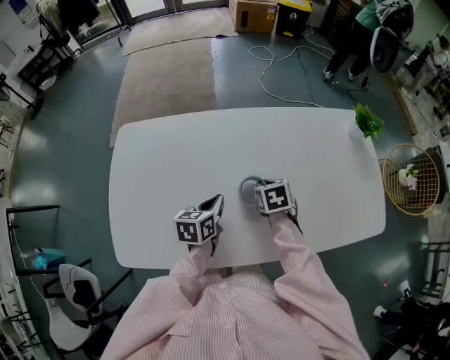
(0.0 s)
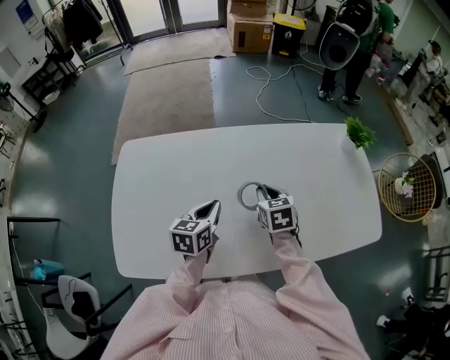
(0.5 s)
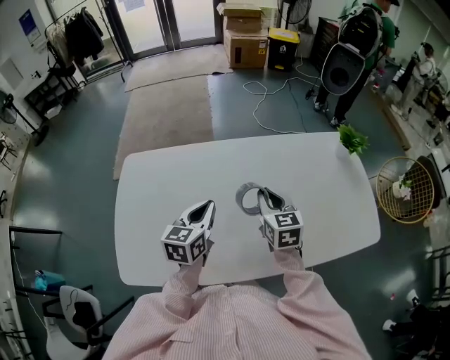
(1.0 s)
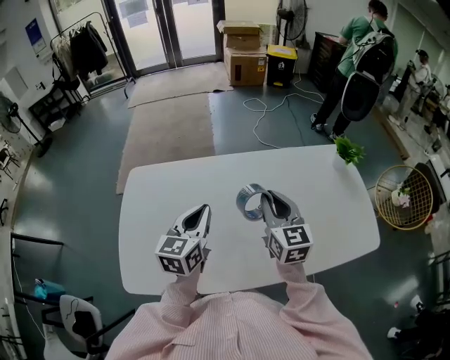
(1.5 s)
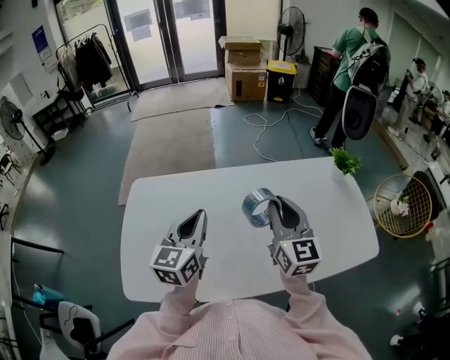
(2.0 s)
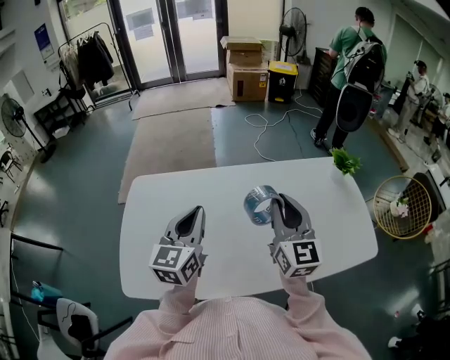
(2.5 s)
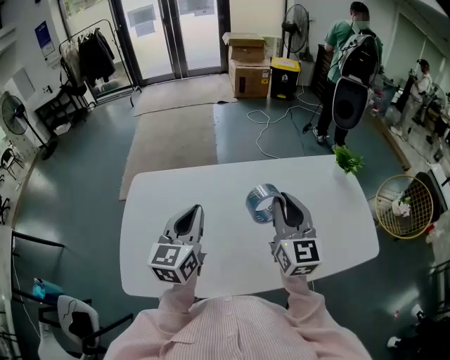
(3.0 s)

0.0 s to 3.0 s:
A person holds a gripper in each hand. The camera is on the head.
0.0 to 1.5 s: Both grippers move upward, some 20 cm. The left gripper turns by about 30 degrees, while the right gripper angles its fingers upward, by roughly 50 degrees.
1.5 to 3.0 s: Both grippers move upward, about 5 cm.

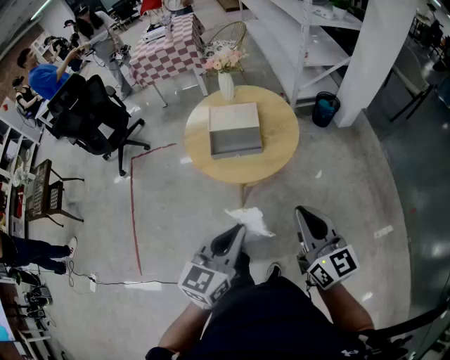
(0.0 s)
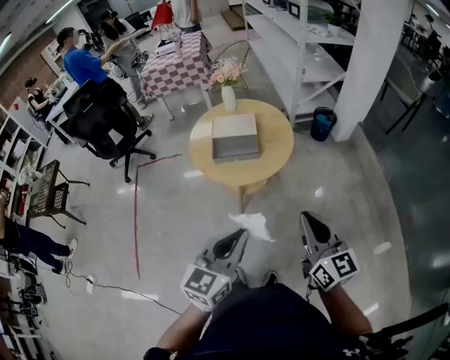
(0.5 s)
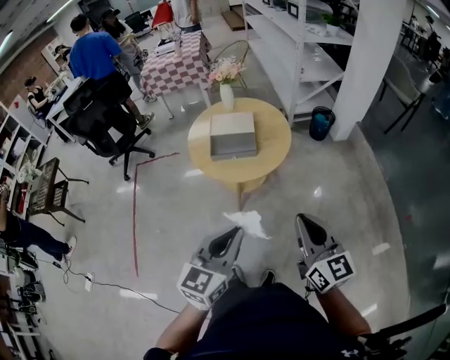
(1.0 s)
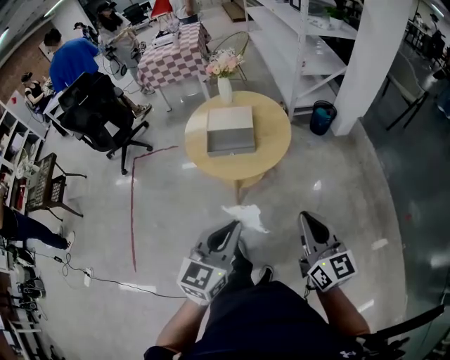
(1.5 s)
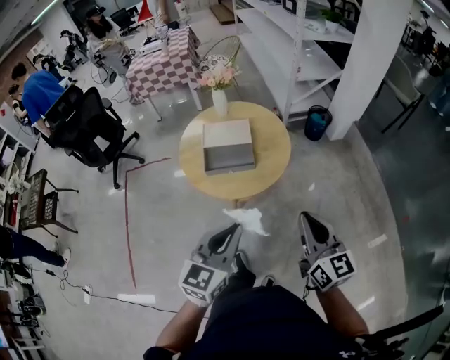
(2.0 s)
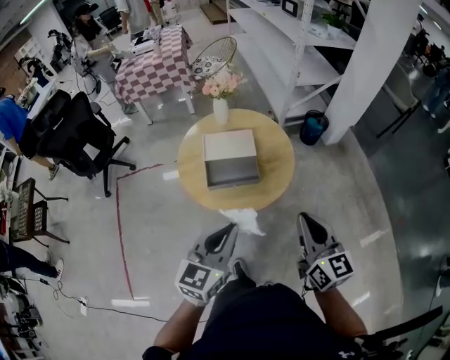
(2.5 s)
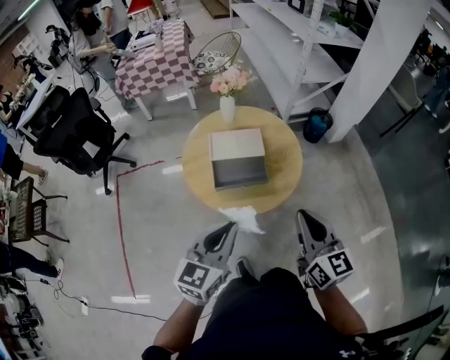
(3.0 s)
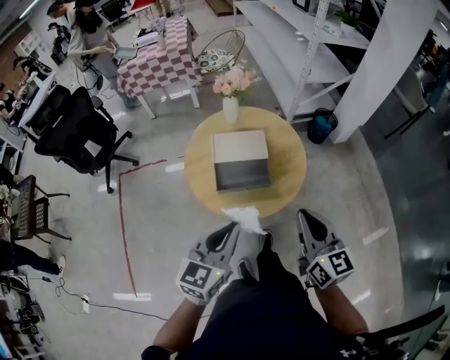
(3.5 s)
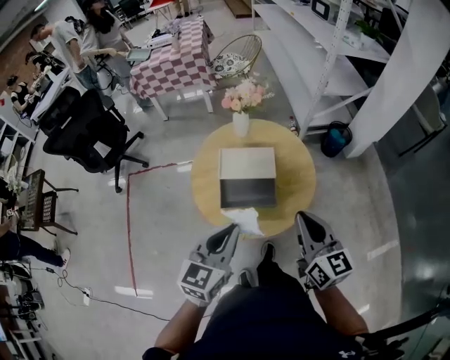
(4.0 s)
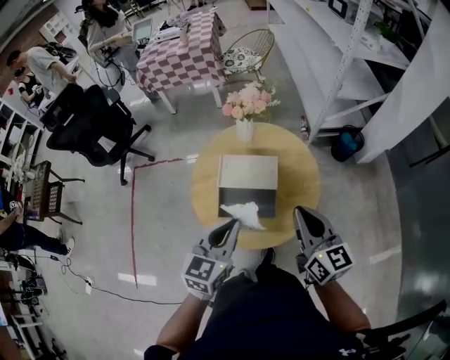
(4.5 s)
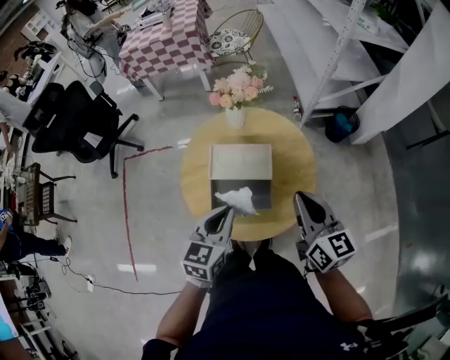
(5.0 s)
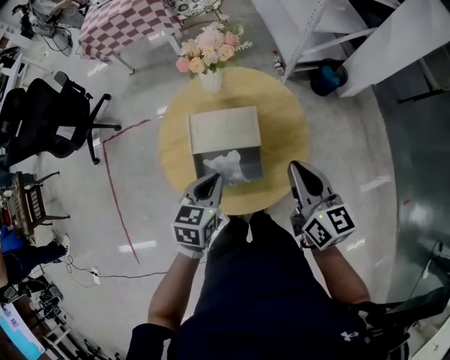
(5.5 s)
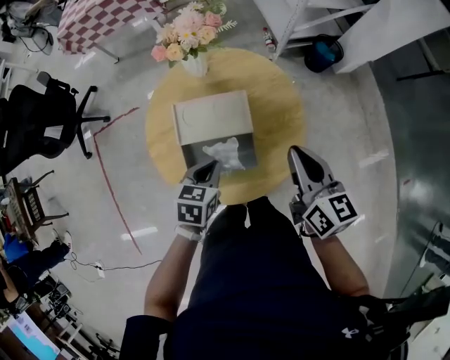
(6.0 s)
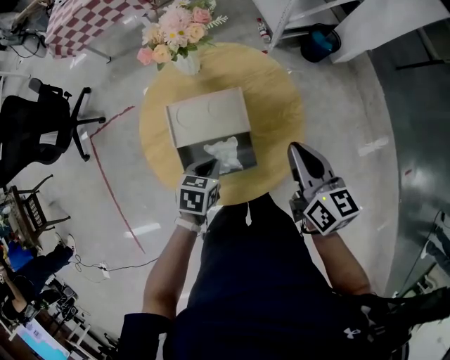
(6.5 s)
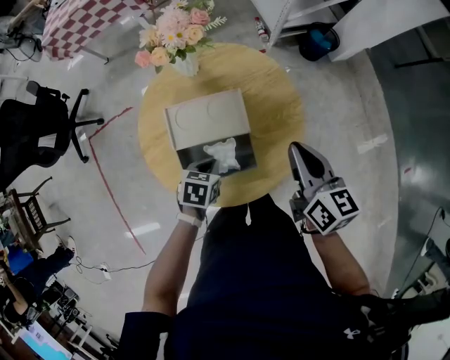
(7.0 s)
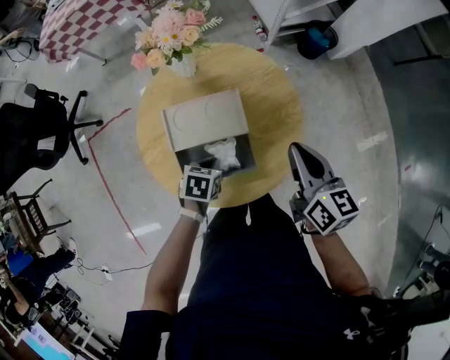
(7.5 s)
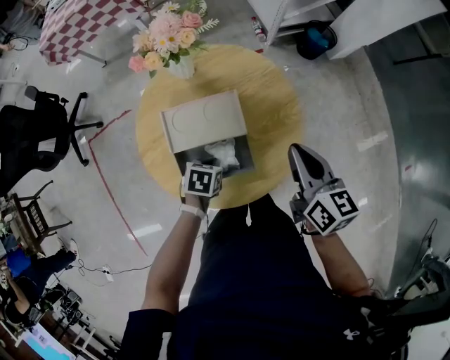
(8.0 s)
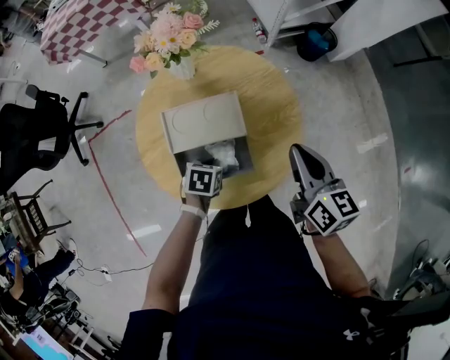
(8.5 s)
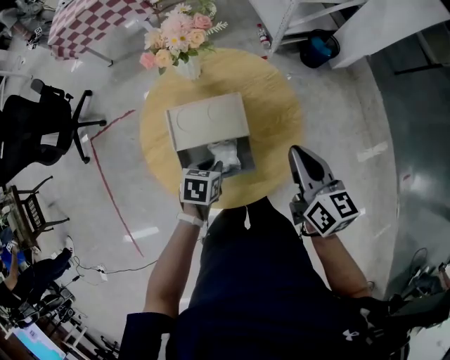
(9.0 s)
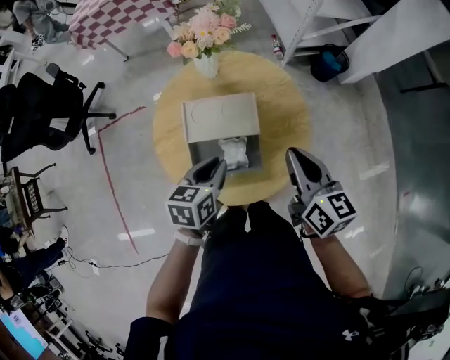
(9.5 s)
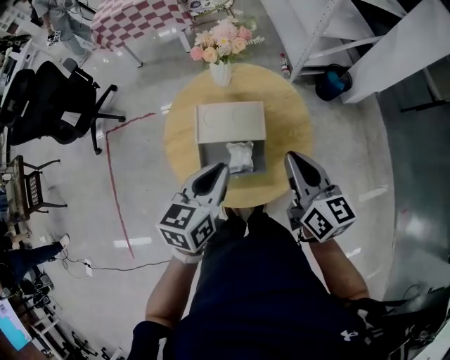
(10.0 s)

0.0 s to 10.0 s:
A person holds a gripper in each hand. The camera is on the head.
0.0 to 2.0 s: The left gripper moves approximately 10 cm backward and comes back; the right gripper goes backward and returns, about 10 cm each way.
2.0 to 4.0 s: The two grippers go some 25 cm forward and to the left.
4.0 to 6.0 s: The left gripper goes some 25 cm downward and forward, and points its fingers roughly 30 degrees further downward. Meanwhile the right gripper goes about 15 cm forward and downward.
6.0 to 8.0 s: The left gripper moves downward, some 10 cm, and swivels about 20 degrees.
8.0 to 10.0 s: The left gripper shifts roughly 25 cm upward, and tips its fingers upward by approximately 40 degrees, while the right gripper goes about 10 cm upward, to the left and backward.

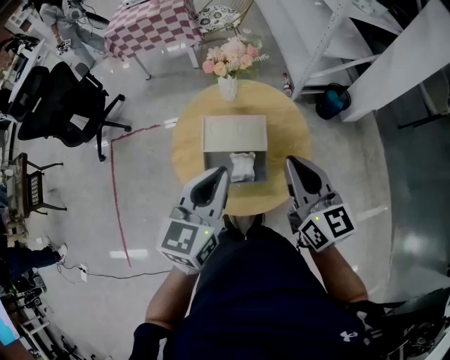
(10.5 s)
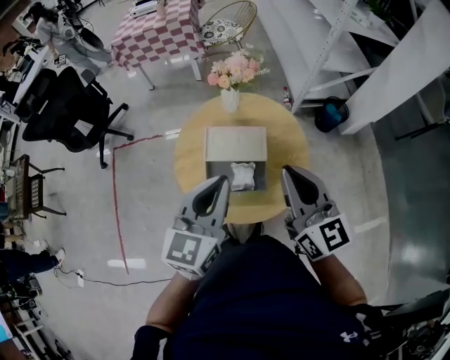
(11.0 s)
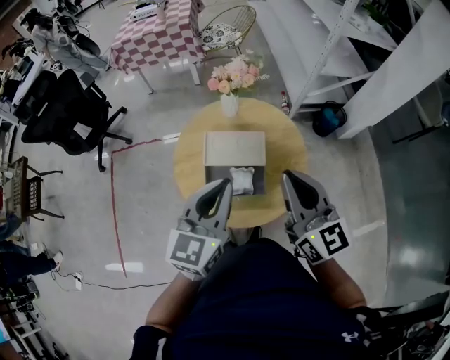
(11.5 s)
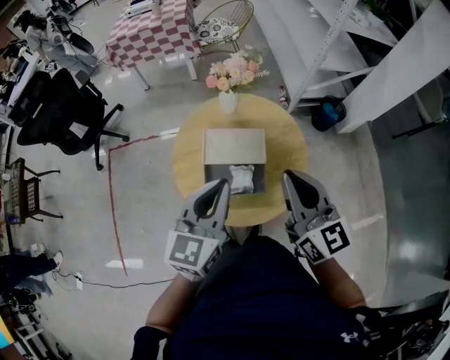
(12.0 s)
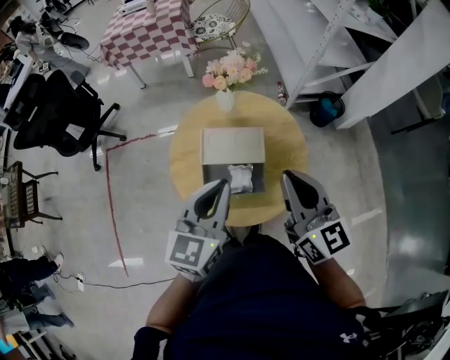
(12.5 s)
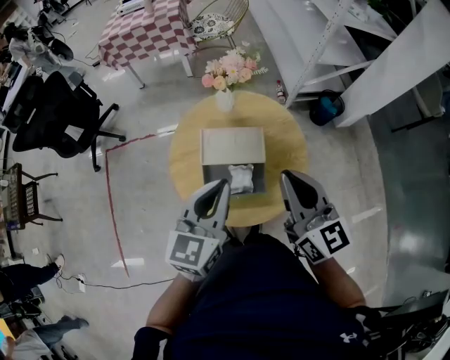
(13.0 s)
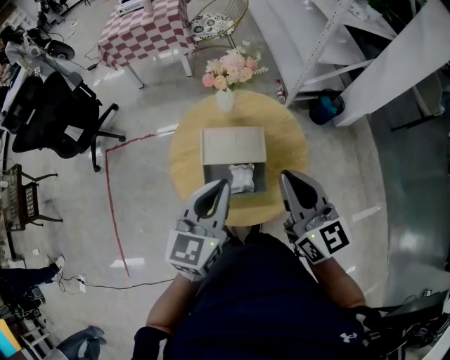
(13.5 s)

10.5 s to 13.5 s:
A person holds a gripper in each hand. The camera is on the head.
10.5 to 13.5 s: The grippers move only a little.

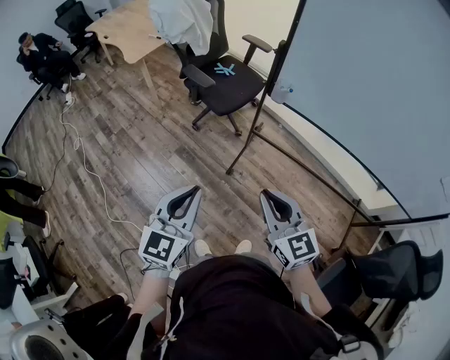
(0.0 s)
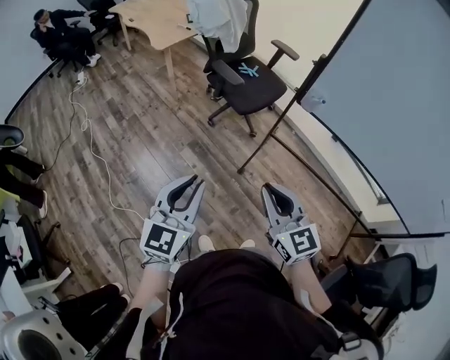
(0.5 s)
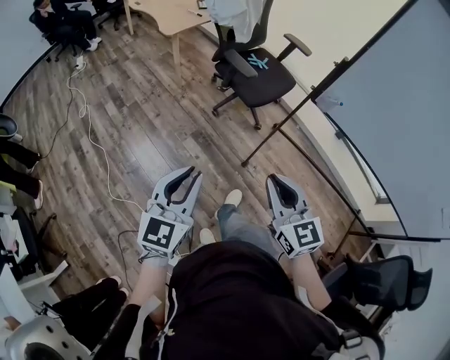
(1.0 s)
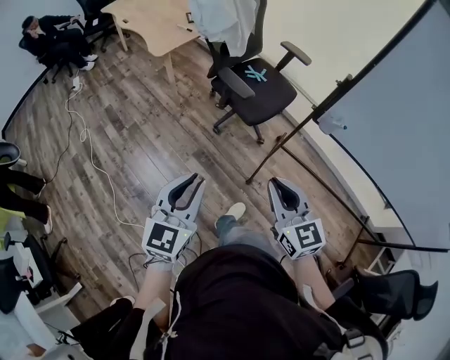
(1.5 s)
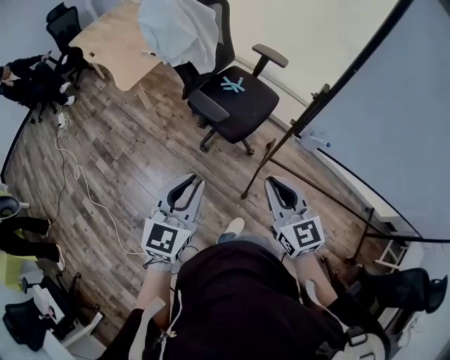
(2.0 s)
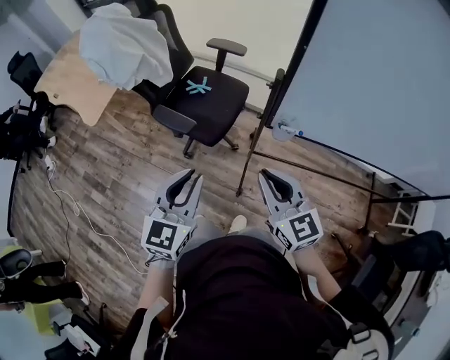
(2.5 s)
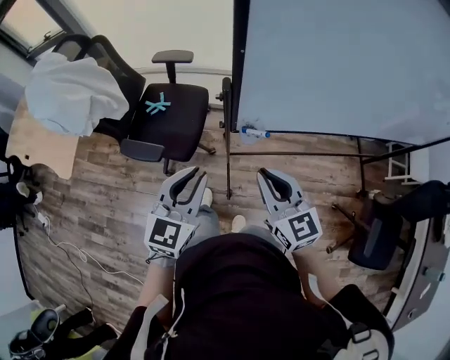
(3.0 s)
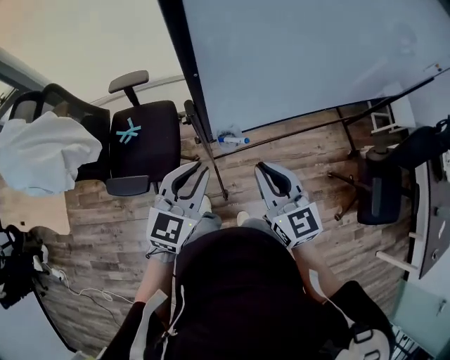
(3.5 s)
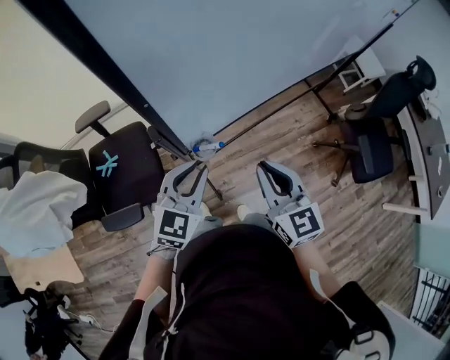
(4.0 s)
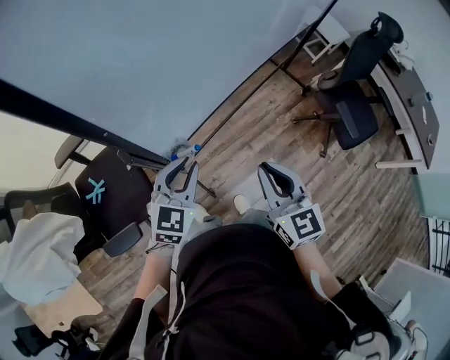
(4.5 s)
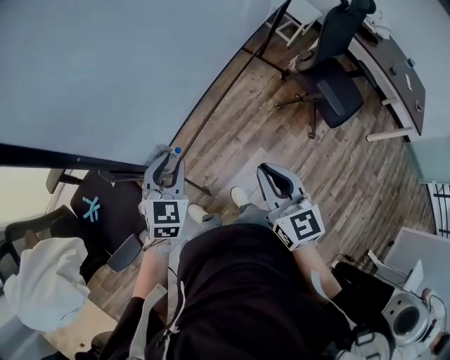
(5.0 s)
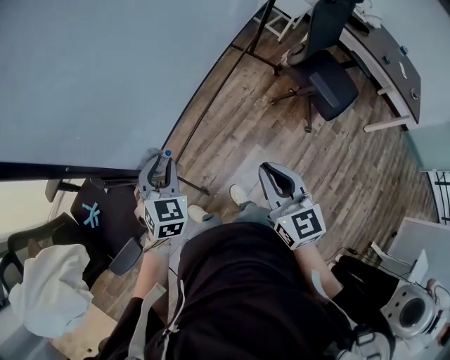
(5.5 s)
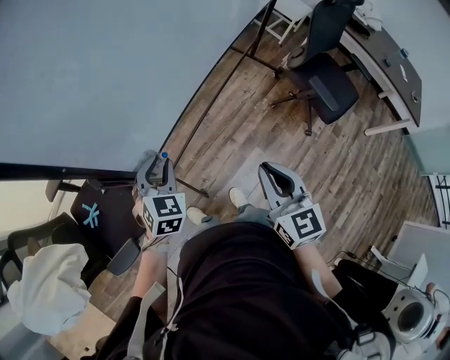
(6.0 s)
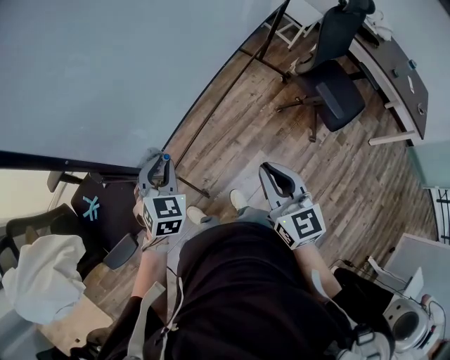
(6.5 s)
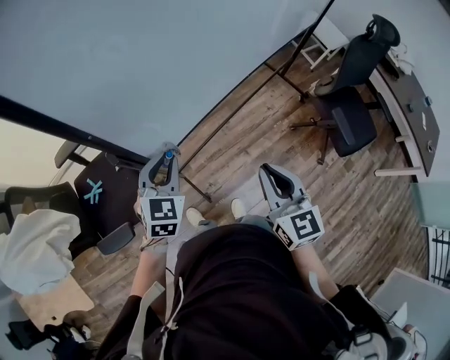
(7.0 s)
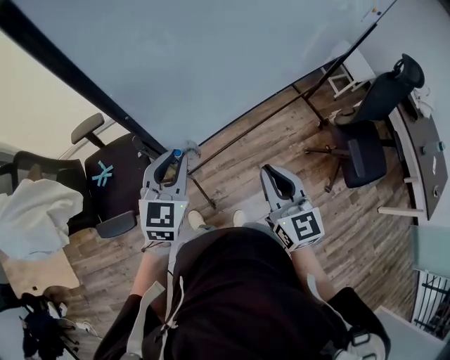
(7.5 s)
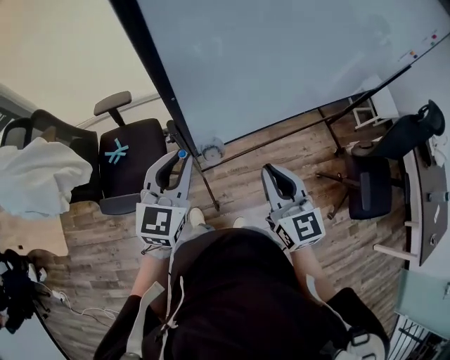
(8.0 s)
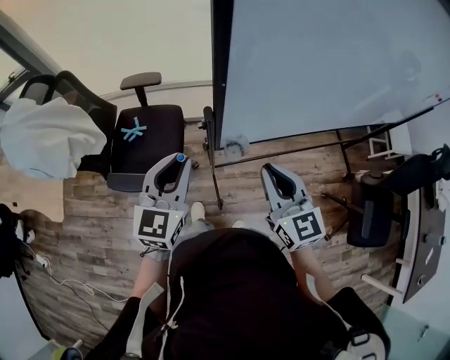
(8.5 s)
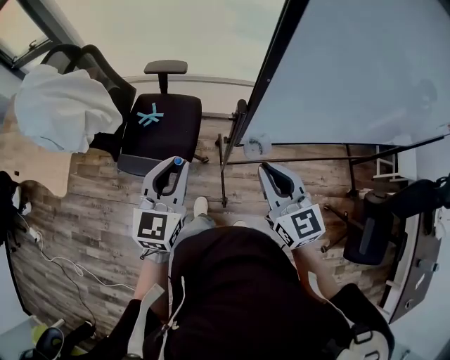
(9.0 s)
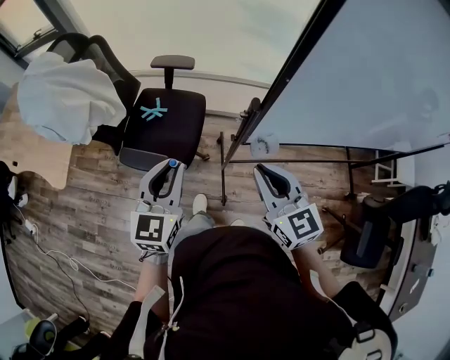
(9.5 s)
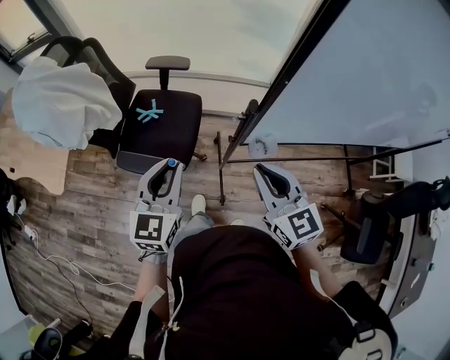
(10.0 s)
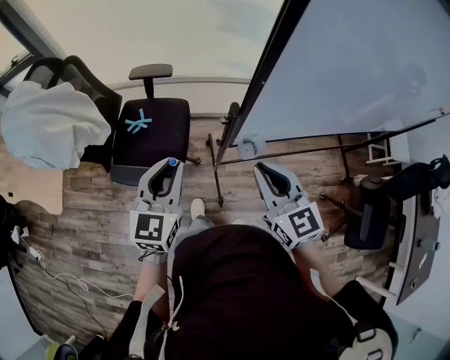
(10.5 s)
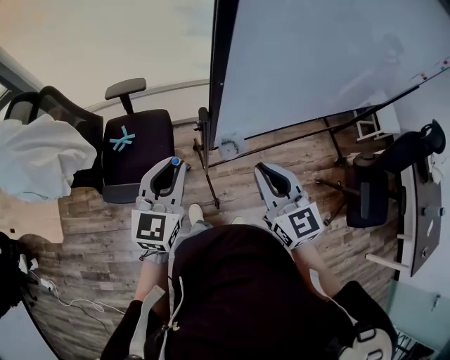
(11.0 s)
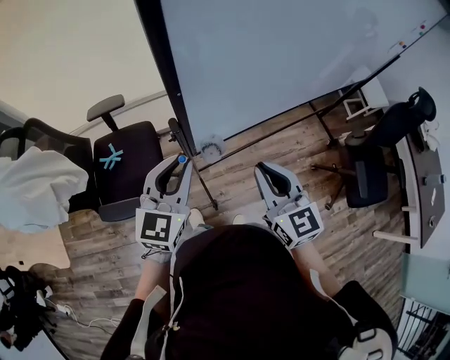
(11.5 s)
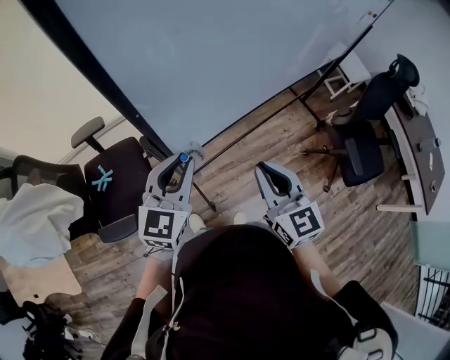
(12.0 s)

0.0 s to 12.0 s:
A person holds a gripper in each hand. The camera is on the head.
0.0 to 2.0 s: The two grippers go some 30 cm forward.
2.0 to 4.0 s: The left gripper ends up about 35 cm from where it was, and turns by some 70 degrees; the right gripper ends up roughly 25 cm from where it was, and rotates approximately 60 degrees.
4.0 to 6.0 s: The right gripper shifts about 15 cm to the right, and swivels approximately 30 degrees. Meanwhile the left gripper shifts some 10 cm forward and downward, and swivels approximately 20 degrees.
6.0 to 8.0 s: The right gripper is displaced to the left and forward by roughly 15 cm, and rotates roughly 30 degrees. The left gripper is displaced upward and to the left by about 15 cm, and rotates about 40 degrees.
8.0 to 10.0 s: The left gripper ends up about 20 cm from where it was, and turns by approximately 20 degrees. The right gripper moves about 15 cm, and rotates approximately 30 degrees.
10.0 to 12.0 s: The right gripper ends up about 20 cm from where it was, and turns by approximately 40 degrees. Meanwhile the left gripper ends up about 25 cm from where it was, and rotates approximately 40 degrees.
